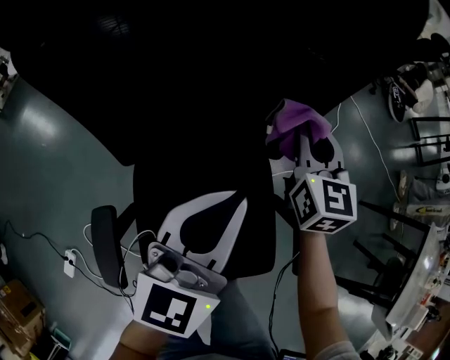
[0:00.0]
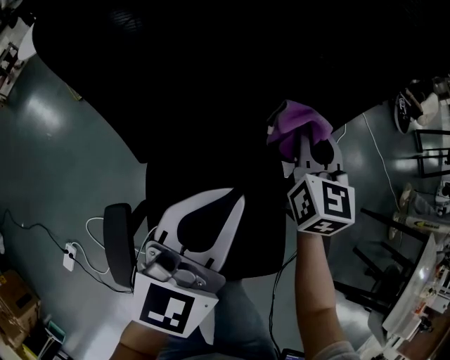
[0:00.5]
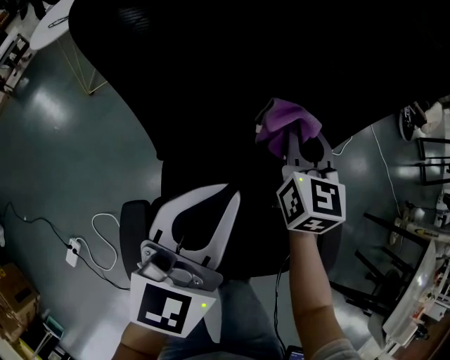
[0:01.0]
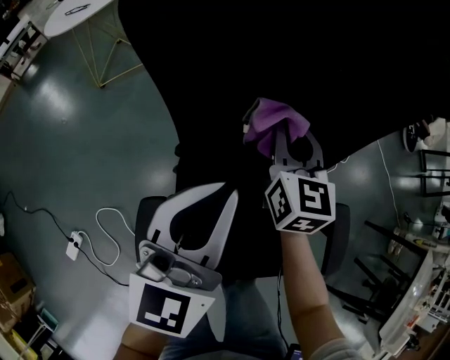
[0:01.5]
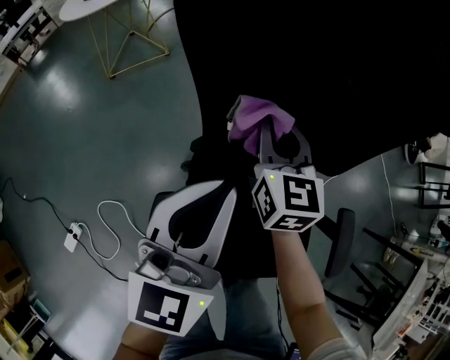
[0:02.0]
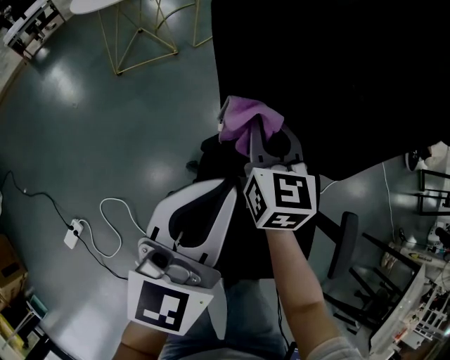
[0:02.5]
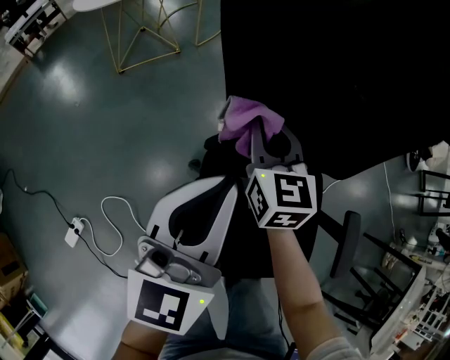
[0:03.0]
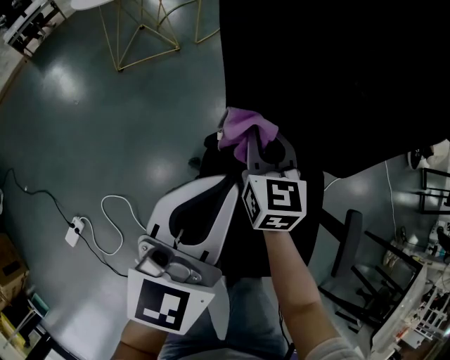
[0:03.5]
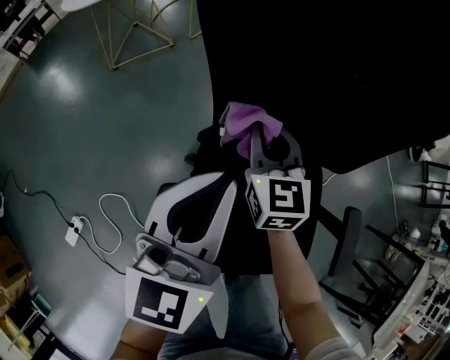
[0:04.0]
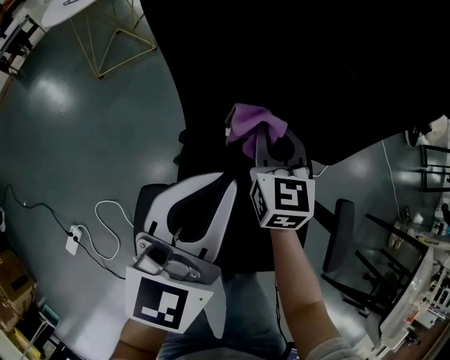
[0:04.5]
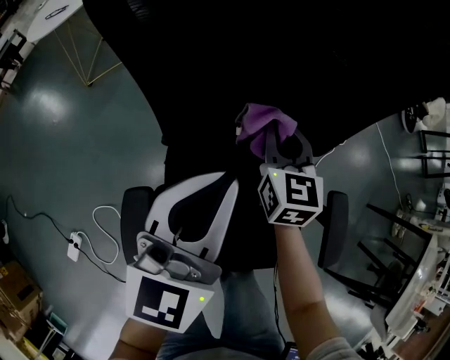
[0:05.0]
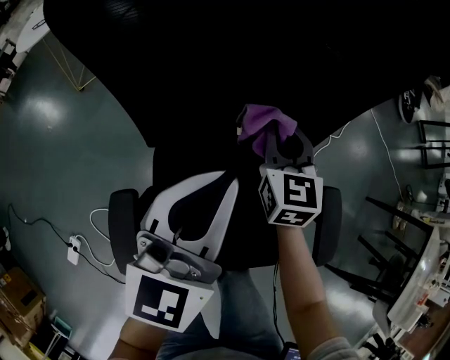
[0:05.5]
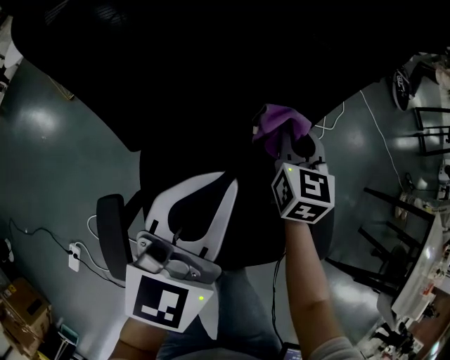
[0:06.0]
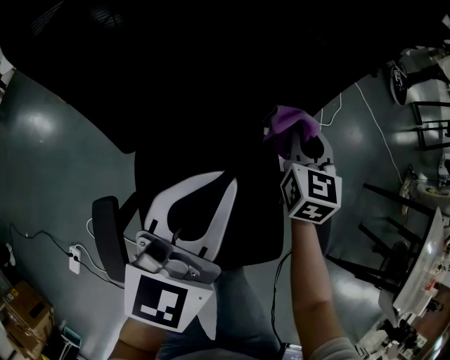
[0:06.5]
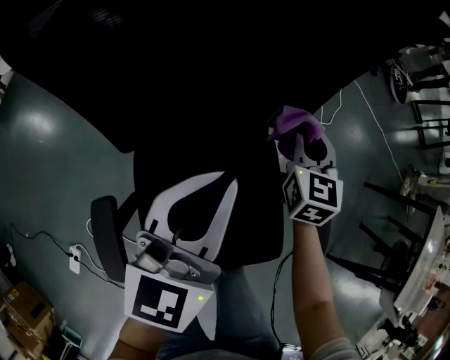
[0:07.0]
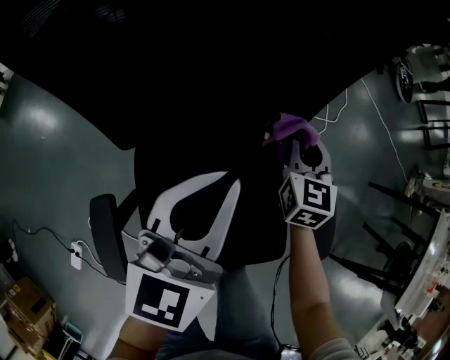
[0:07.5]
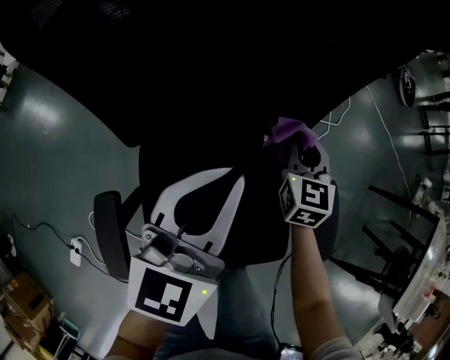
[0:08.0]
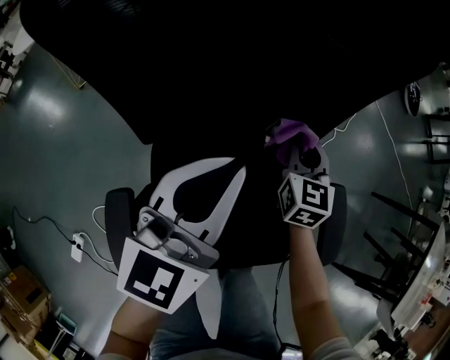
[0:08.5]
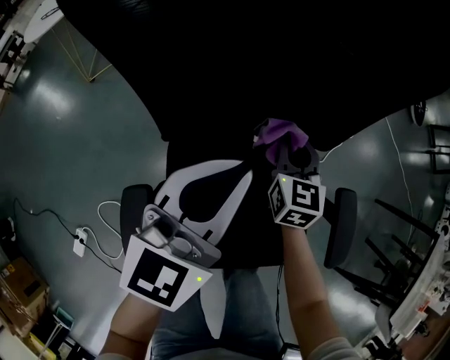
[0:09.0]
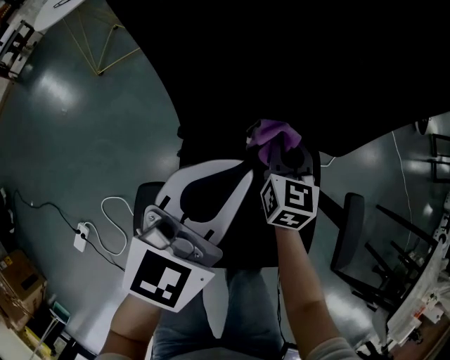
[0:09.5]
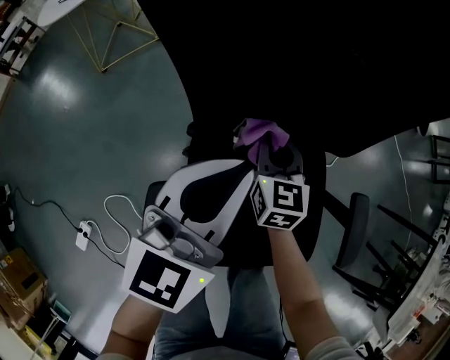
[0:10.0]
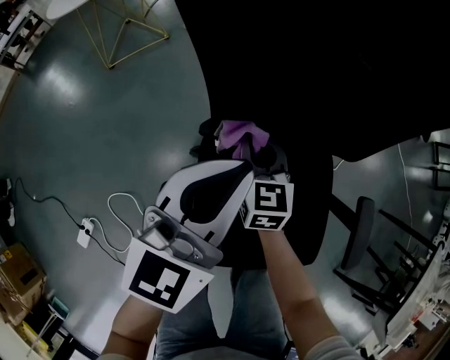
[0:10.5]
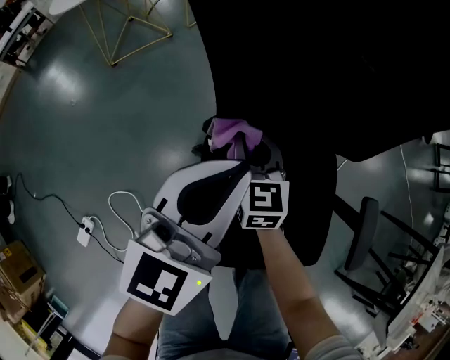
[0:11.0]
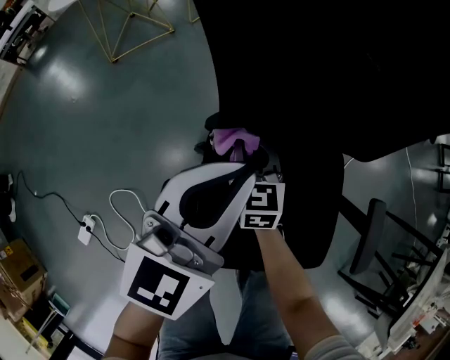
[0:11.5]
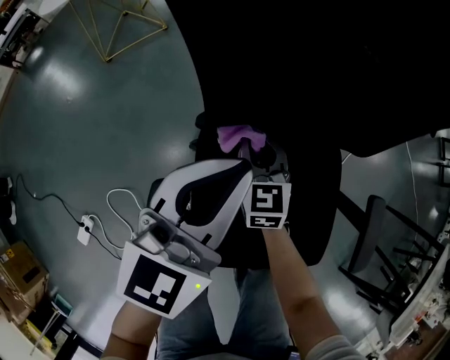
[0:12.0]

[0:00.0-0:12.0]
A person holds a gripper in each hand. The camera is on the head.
0:00.0 to 0:02.0: The two grippers go some 25 cm to the left.
0:02.0 to 0:04.0: The right gripper ends up some 5 cm from where it was.
0:04.0 to 0:06.0: The right gripper heads to the right, covering some 25 cm, and swivels about 20 degrees, while the left gripper moves to the right, some 15 cm.
0:06.0 to 0:08.0: The right gripper shifts by some 5 cm.
0:08.0 to 0:10.0: The left gripper is displaced to the left by approximately 10 cm. The right gripper heads to the left, covering approximately 20 cm.
0:10.0 to 0:12.0: The right gripper travels downward and to the left by some 10 cm.

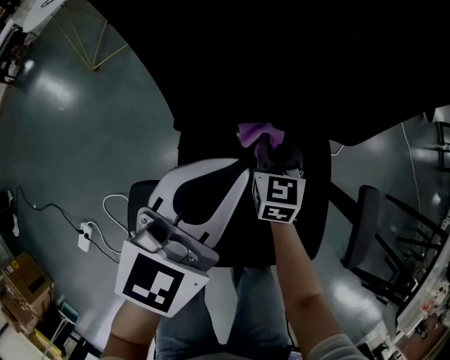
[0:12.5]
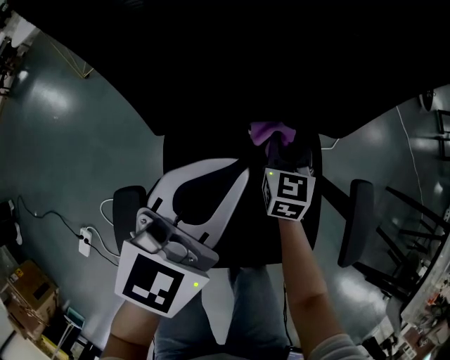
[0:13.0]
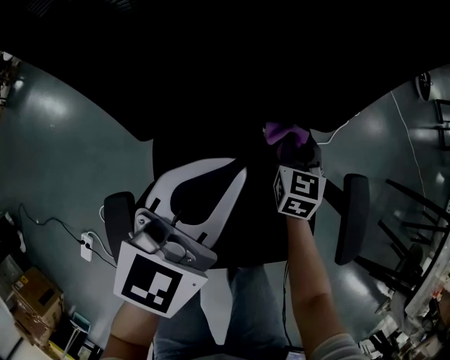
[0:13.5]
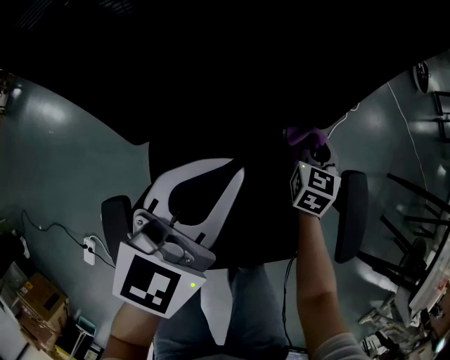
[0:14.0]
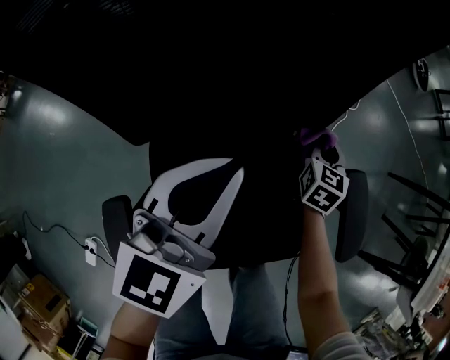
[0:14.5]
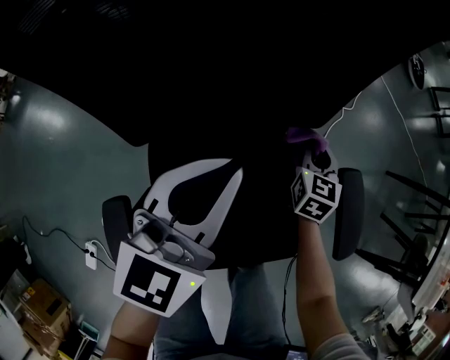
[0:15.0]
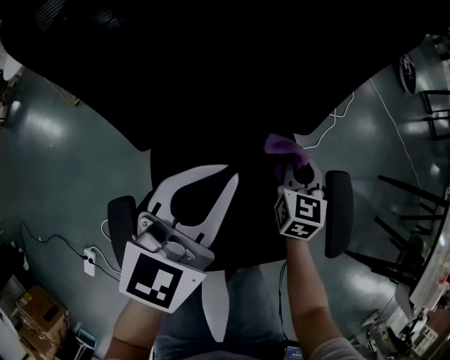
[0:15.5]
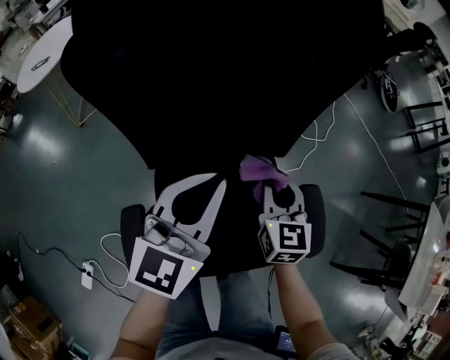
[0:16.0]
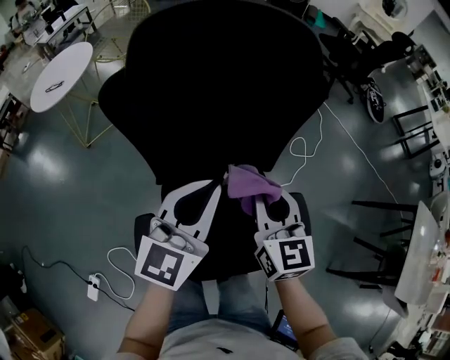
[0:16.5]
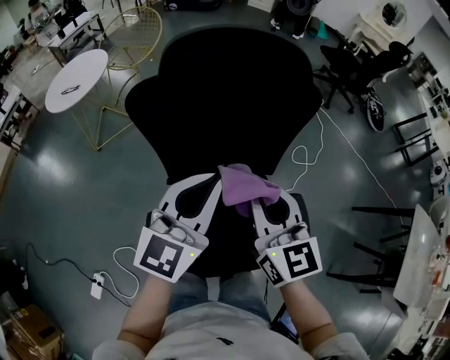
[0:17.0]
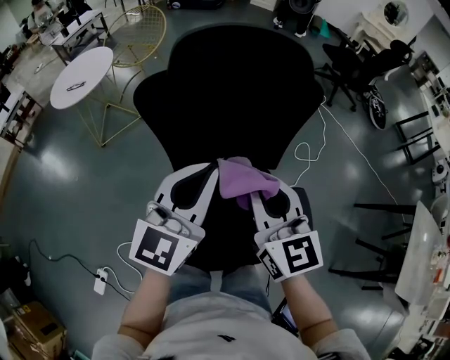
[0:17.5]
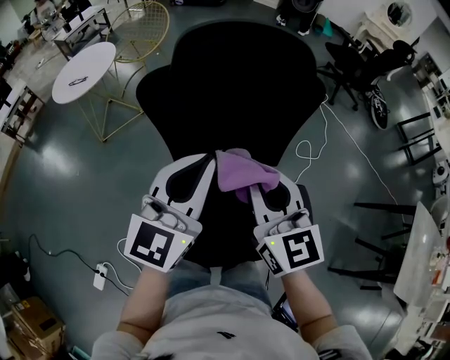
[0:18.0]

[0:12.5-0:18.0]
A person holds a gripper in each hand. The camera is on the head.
0:12.5 to 0:14.5: The right gripper travels to the right by roughly 25 cm, and rotates roughly 30 degrees, while the left gripper travels to the right by some 5 cm.
0:14.5 to 0:16.0: The right gripper moves upward, backward and to the left, about 20 cm, and changes its angle by some 20 degrees. Meanwhile the left gripper is displaced upward by some 10 cm.
0:16.0 to 0:18.0: The left gripper goes about 15 cm upward and to the left; the right gripper is displaced upward and to the left by about 25 cm, and swivels about 20 degrees.

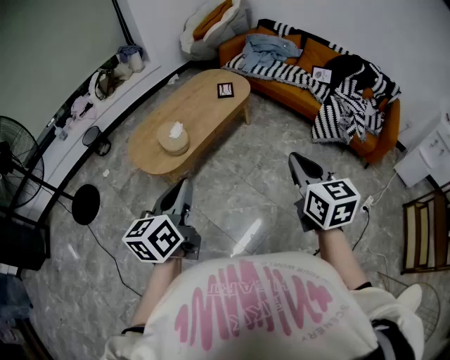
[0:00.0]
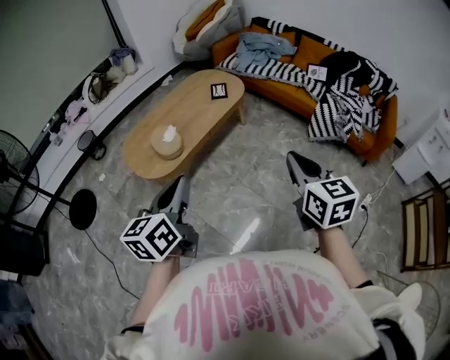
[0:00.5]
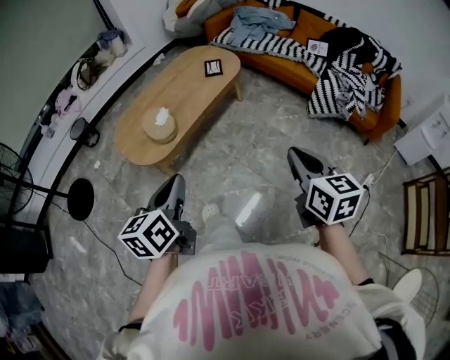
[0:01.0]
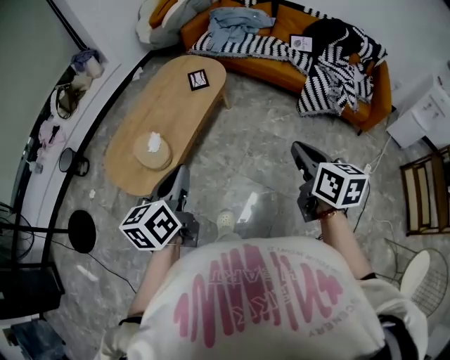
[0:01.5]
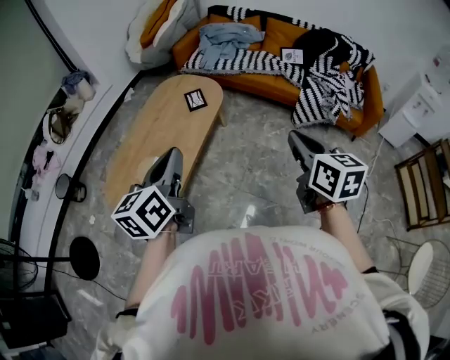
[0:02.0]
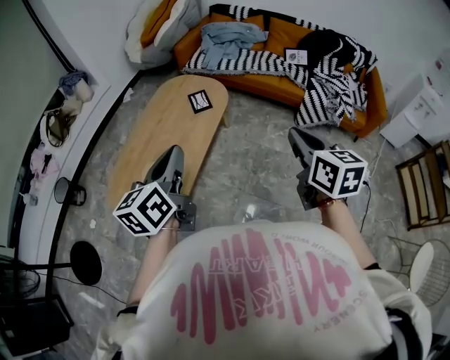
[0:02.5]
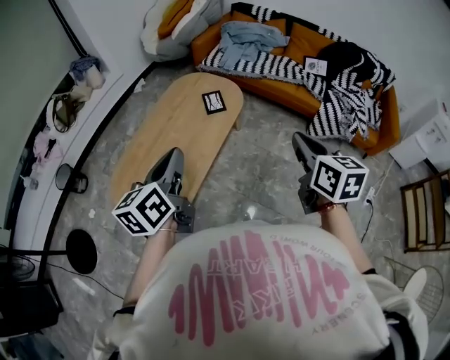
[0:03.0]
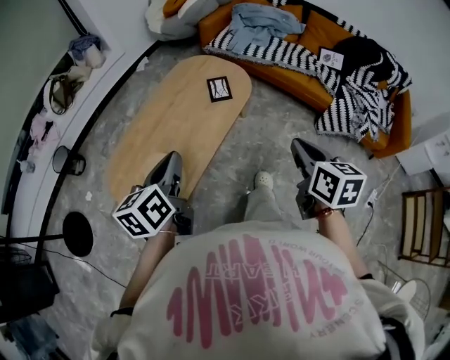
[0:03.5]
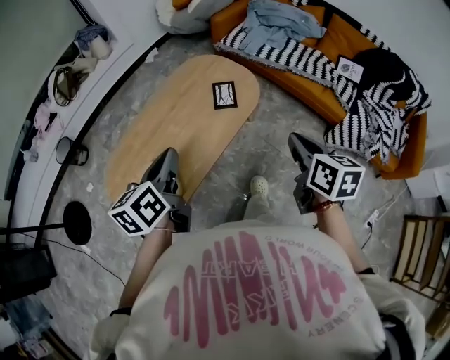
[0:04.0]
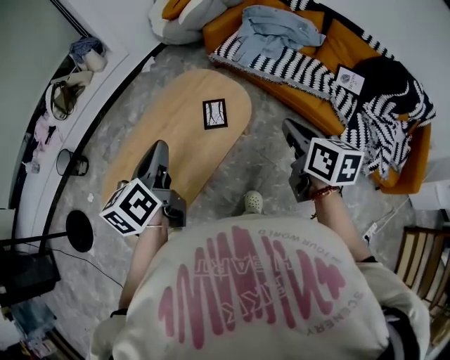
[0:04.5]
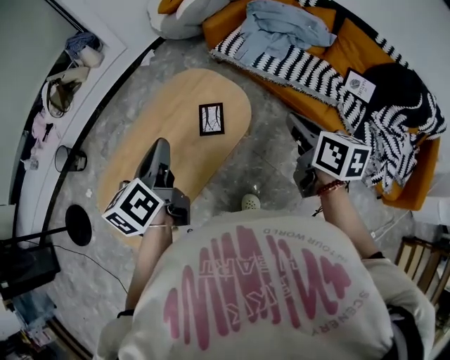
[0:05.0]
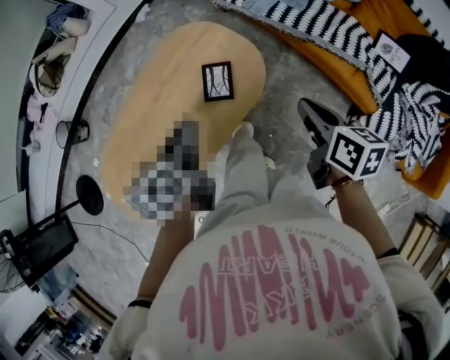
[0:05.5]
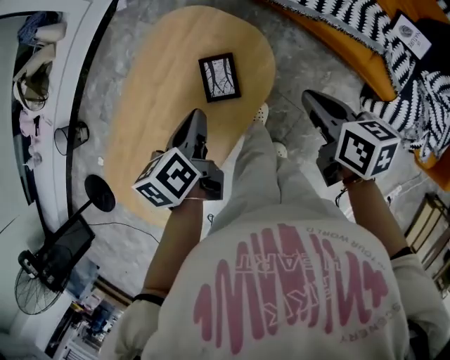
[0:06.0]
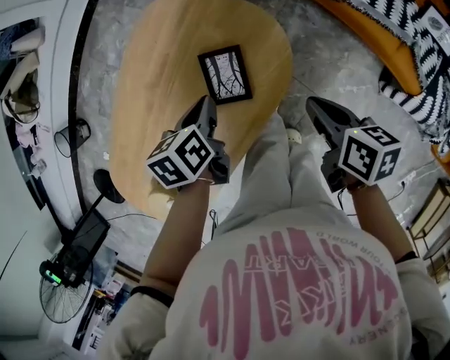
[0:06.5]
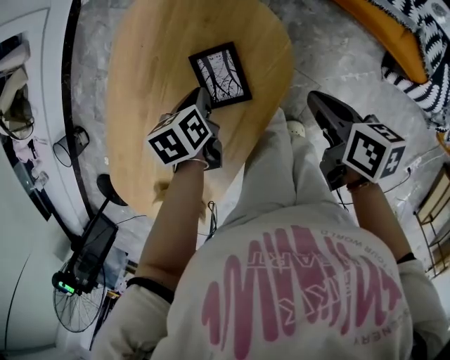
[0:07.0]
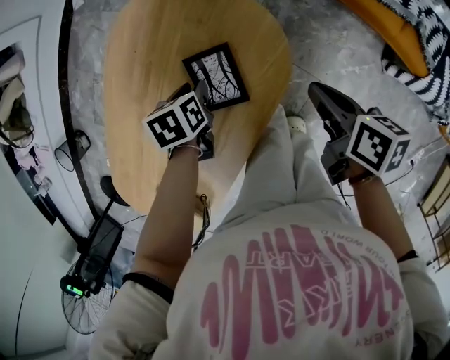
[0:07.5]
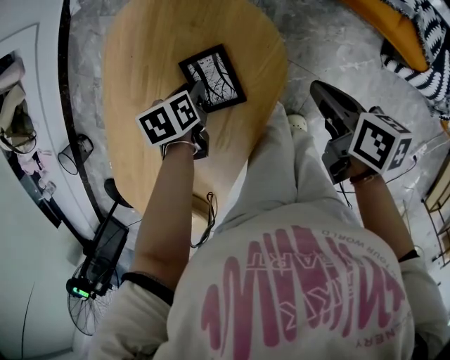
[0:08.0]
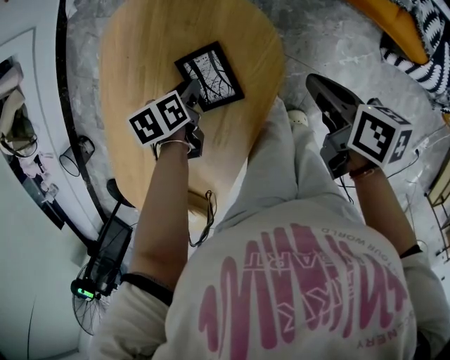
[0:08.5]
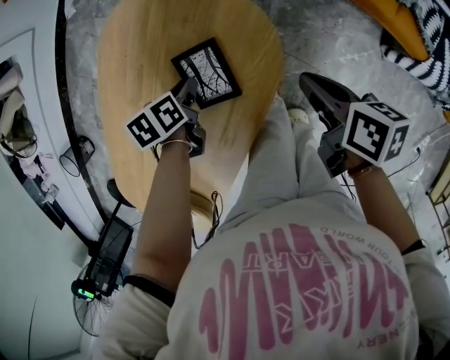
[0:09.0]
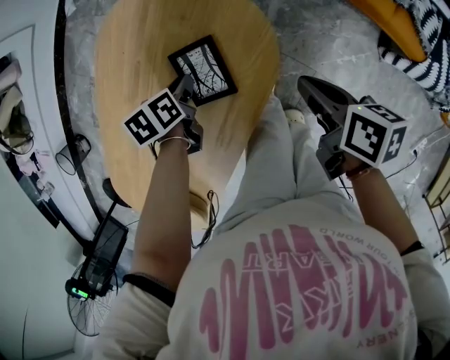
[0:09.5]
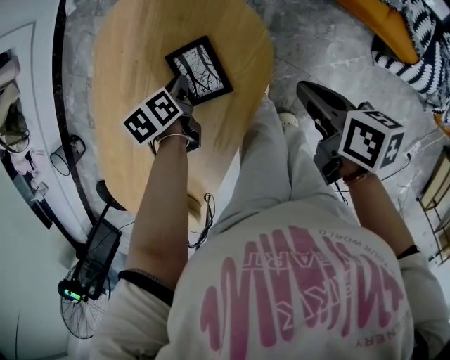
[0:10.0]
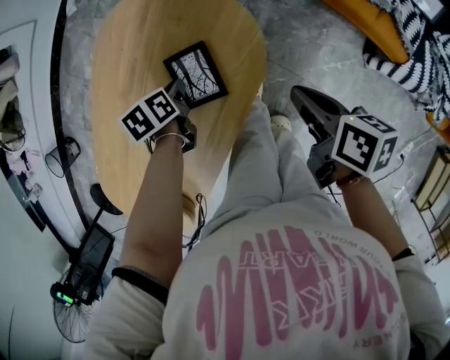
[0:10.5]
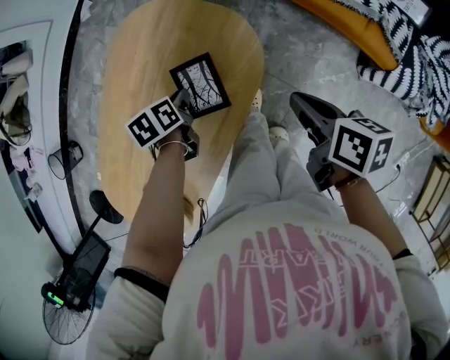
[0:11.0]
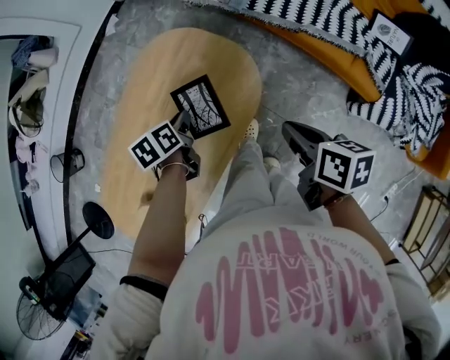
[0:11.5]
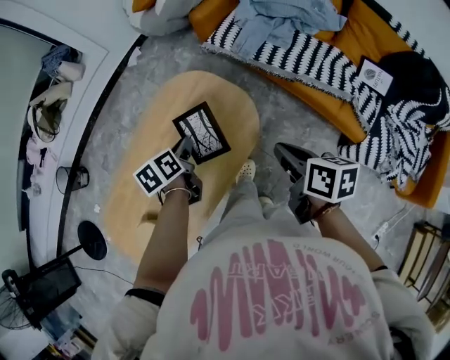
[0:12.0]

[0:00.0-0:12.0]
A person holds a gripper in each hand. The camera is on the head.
0:00.0 to 0:02.0: Both grippers move forward, about 25 cm.
0:02.0 to 0:04.0: The right gripper heads forward, covering approximately 30 cm; the left gripper is displaced forward and downward by roughly 25 cm, and changes its angle by about 20 degrees.
0:04.0 to 0:06.0: The right gripper moves forward and downward, roughly 35 cm, and changes its angle by some 20 degrees. Meanwhile the left gripper goes some 40 cm forward, downward and to the right, and swivels approximately 20 degrees.
0:06.0 to 0:08.0: The right gripper is displaced downward by about 15 cm, and changes its angle by approximately 30 degrees; the left gripper travels downward by some 25 cm, points its fingers approximately 30 degrees further downward, and opens up.
0:08.0 to 0:10.0: The grippers make only small movements.
0:10.0 to 0:12.0: The two grippers go some 20 cm upward. The left gripper swivels about 20 degrees.
